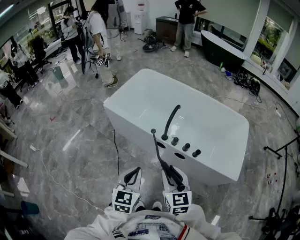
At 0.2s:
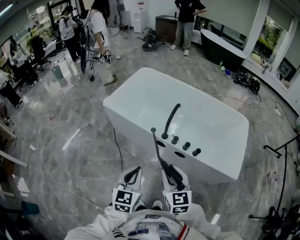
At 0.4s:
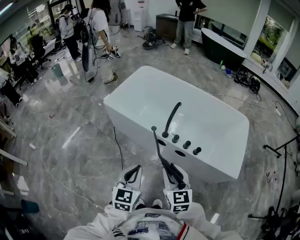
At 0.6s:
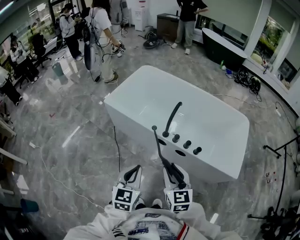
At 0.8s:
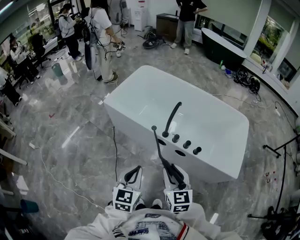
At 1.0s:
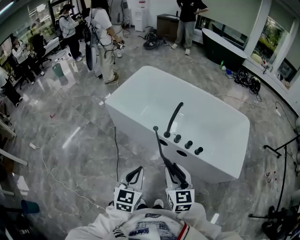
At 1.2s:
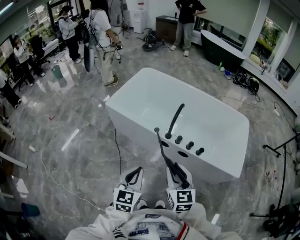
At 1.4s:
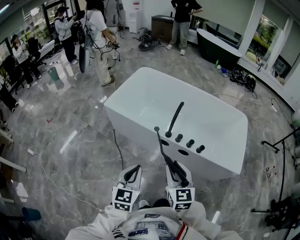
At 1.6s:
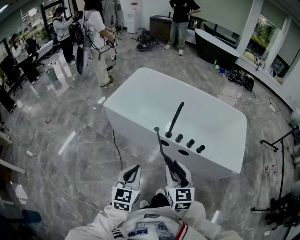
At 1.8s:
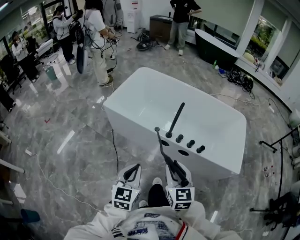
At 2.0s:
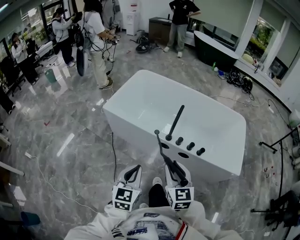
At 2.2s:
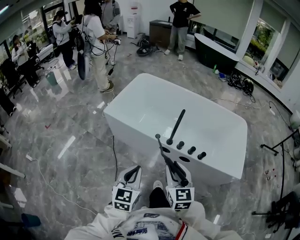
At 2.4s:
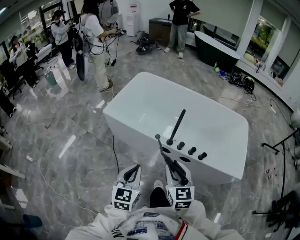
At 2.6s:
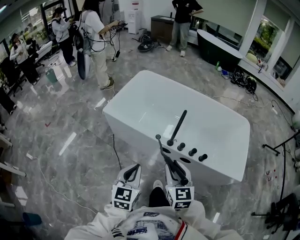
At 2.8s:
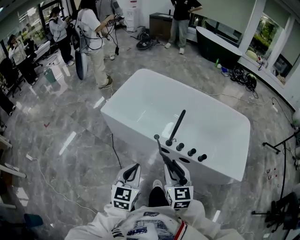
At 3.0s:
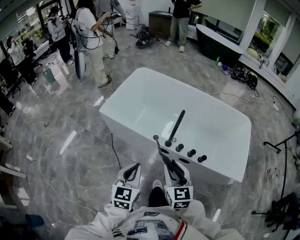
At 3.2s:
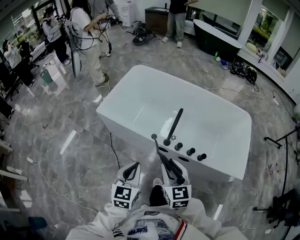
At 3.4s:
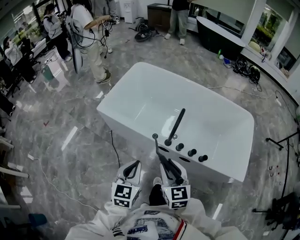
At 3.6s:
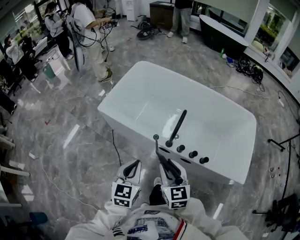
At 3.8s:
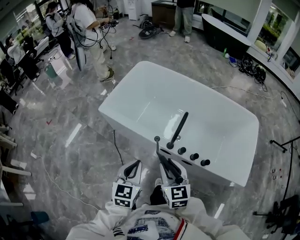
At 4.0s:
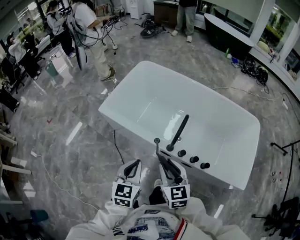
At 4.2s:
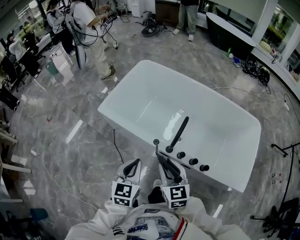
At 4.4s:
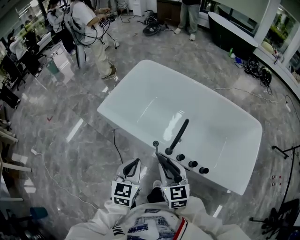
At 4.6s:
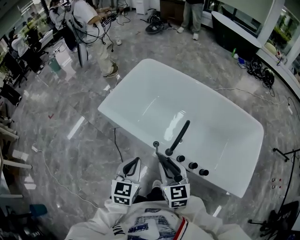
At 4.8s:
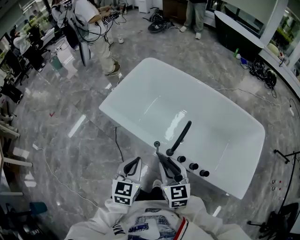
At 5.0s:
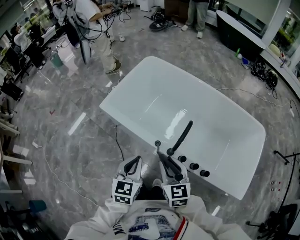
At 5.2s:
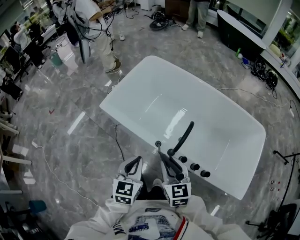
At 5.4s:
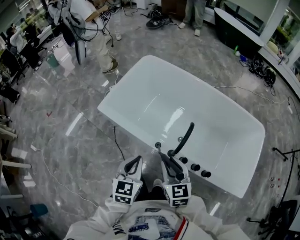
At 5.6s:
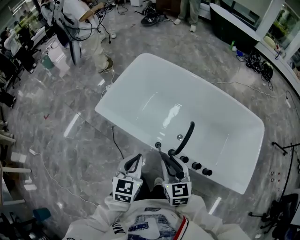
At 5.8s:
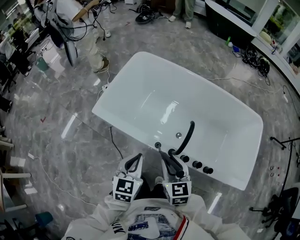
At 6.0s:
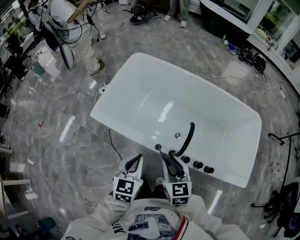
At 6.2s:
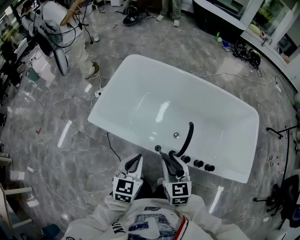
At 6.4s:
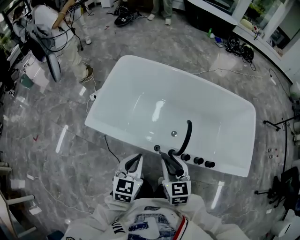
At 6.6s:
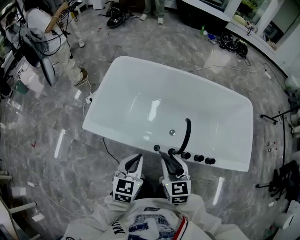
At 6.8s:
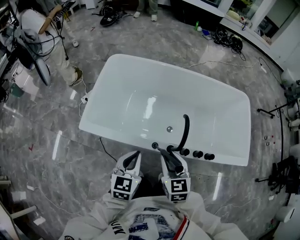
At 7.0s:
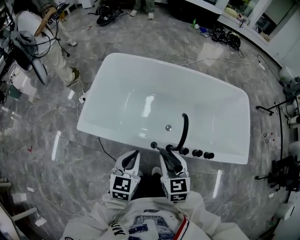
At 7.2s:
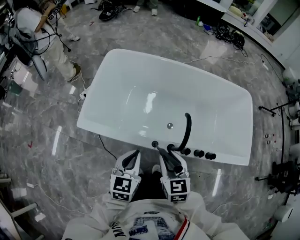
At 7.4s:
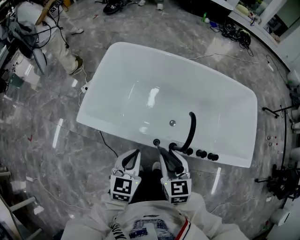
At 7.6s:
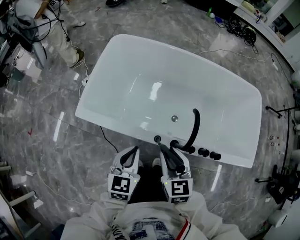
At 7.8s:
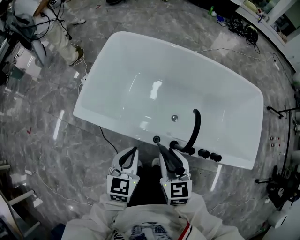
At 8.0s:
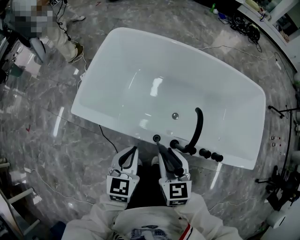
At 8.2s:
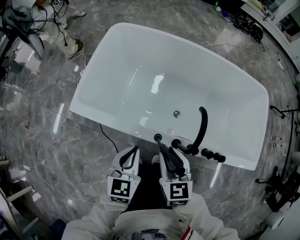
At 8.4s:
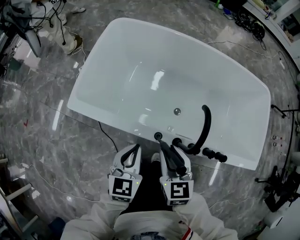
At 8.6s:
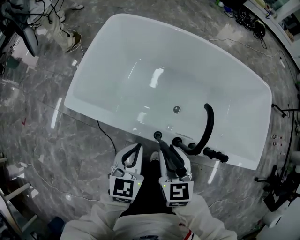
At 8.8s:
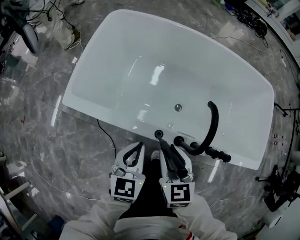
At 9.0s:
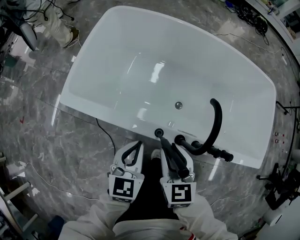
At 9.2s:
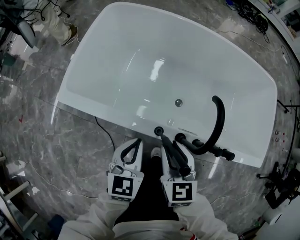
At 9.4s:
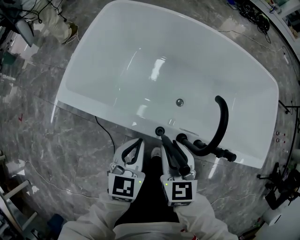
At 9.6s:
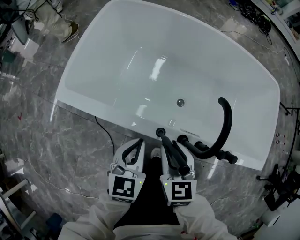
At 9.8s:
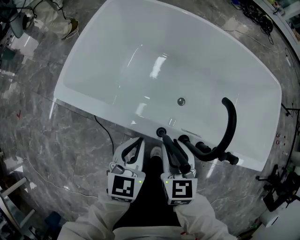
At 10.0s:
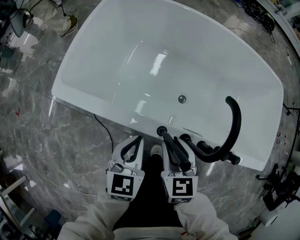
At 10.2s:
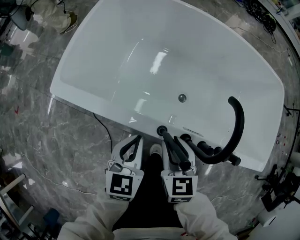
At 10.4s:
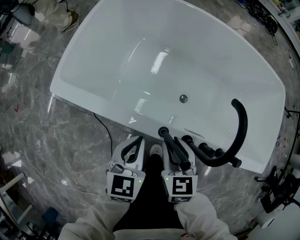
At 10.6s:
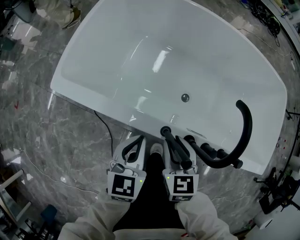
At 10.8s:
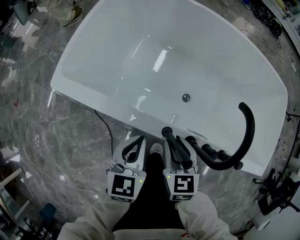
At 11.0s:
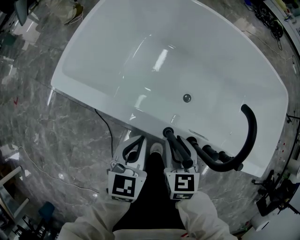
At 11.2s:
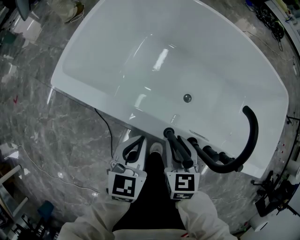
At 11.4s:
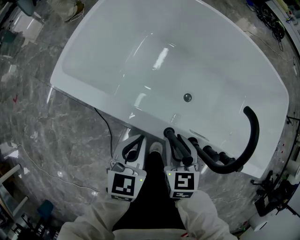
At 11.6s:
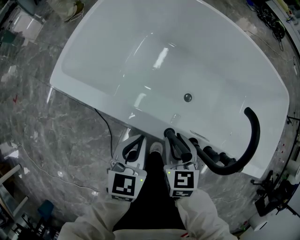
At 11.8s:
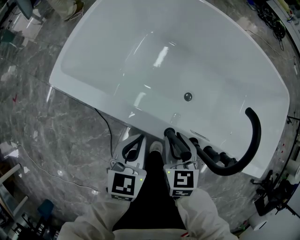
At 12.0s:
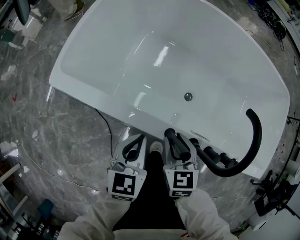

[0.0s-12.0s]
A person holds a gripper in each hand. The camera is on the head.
0.0s to 1.6s: The grippers both shift to the left by about 5 cm.
1.6s to 3.0s: The grippers both shift forward by approximately 10 cm.
3.0s to 4.4s: The grippers both shift forward by about 10 cm.
4.4s to 6.0s: Both grippers travel together forward, approximately 10 cm.
6.0s to 7.6s: The left gripper travels downward by about 5 cm, while the right gripper moves about 5 cm.
7.6s to 9.0s: Both grippers travel together downward, roughly 10 cm.
9.0s to 10.4s: Both grippers travel together downward, approximately 10 cm.
10.4s to 12.0s: The grippers make only small movements.

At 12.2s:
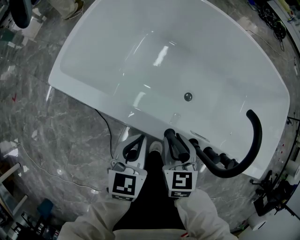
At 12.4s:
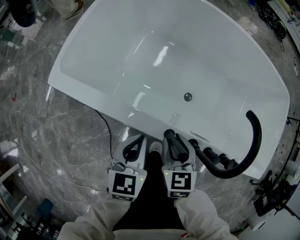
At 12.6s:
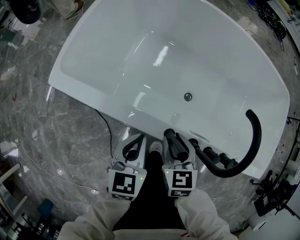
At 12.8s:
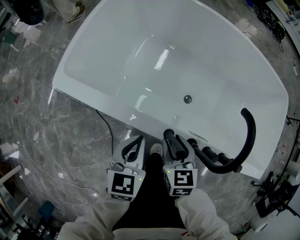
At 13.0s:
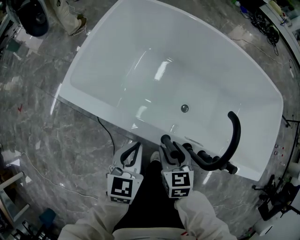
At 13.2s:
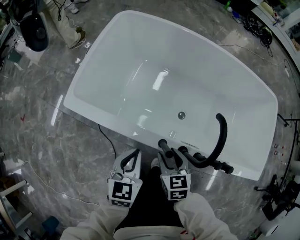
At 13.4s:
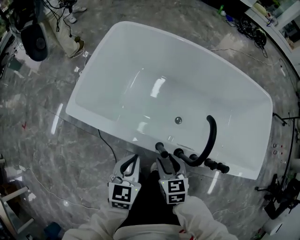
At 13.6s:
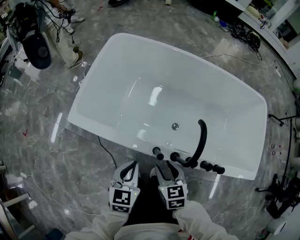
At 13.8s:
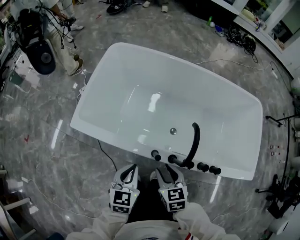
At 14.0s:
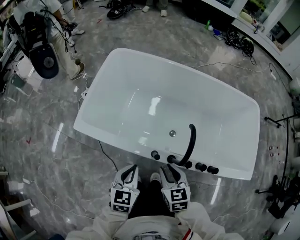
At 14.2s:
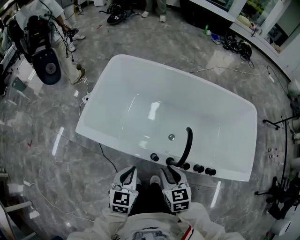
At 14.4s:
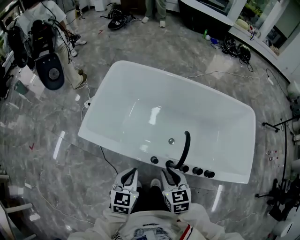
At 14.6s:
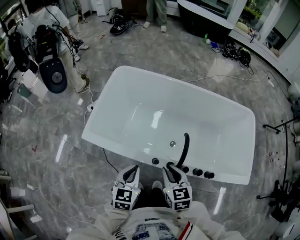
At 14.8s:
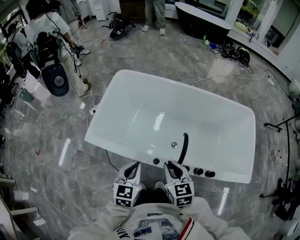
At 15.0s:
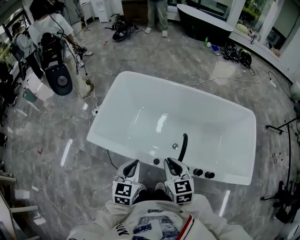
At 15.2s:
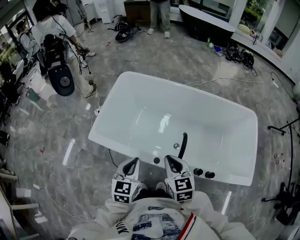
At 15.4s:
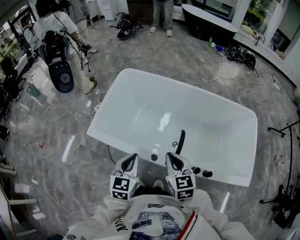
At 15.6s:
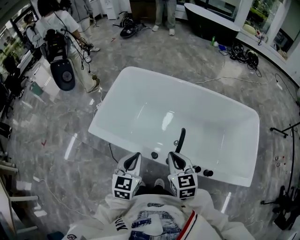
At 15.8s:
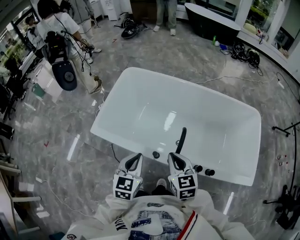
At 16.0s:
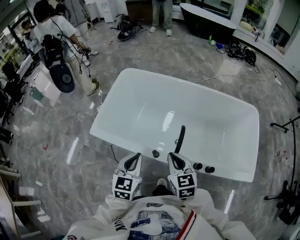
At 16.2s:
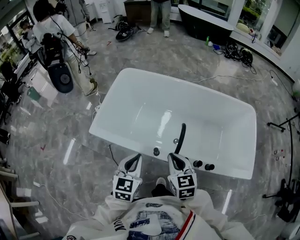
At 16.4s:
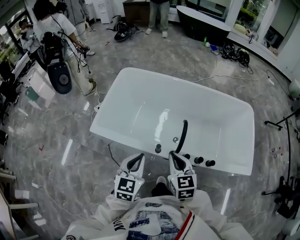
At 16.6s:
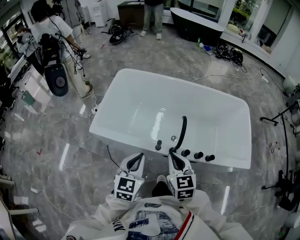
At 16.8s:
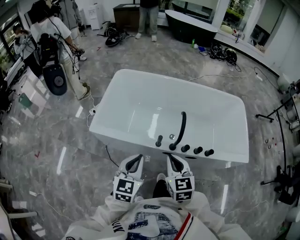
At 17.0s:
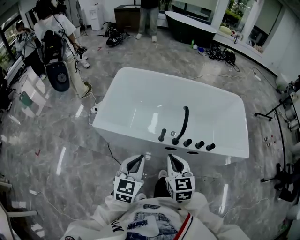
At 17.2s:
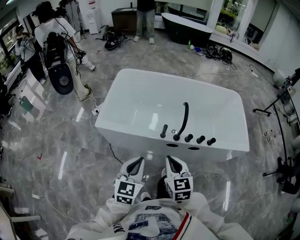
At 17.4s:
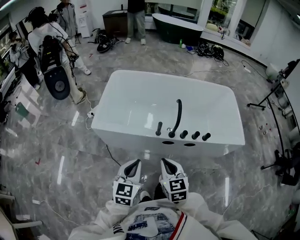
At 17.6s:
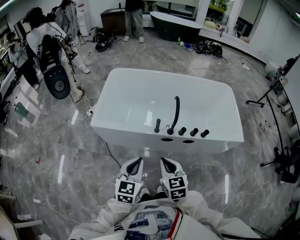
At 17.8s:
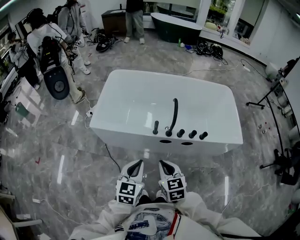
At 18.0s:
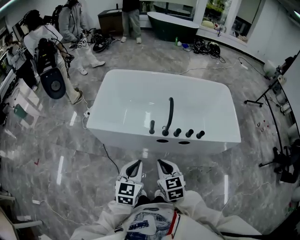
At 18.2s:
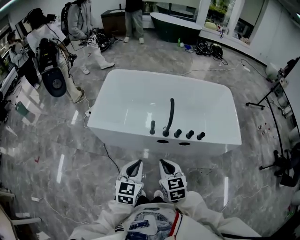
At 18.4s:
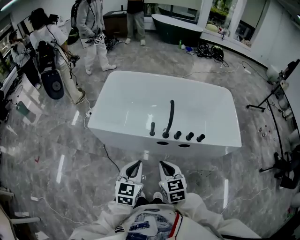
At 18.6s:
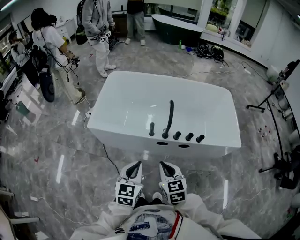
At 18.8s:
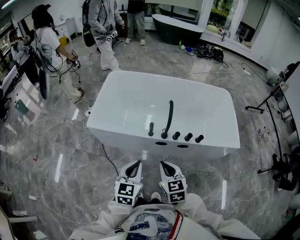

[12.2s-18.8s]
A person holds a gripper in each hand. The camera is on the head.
12.2s to 13.8s: The two grippers go roughly 15 cm upward.
13.8s to 15.4s: The grippers both shift upward by about 15 cm. The right gripper closes up.
15.4s to 17.2s: The right gripper moves backward and to the left, roughly 25 cm. The left gripper shifts approximately 20 cm backward.
17.2s to 18.8s: Both grippers move to the right, approximately 5 cm.

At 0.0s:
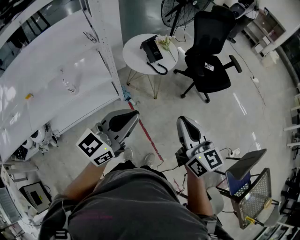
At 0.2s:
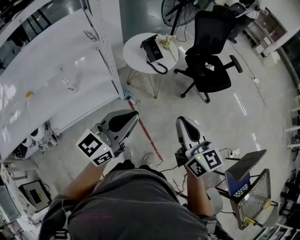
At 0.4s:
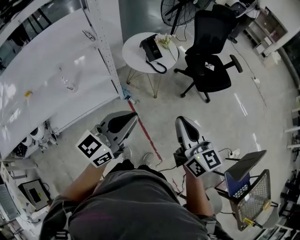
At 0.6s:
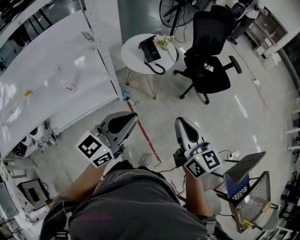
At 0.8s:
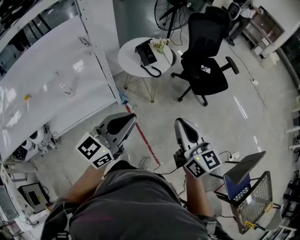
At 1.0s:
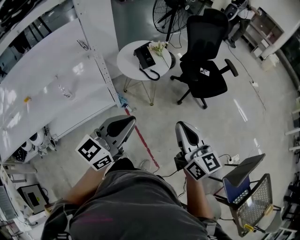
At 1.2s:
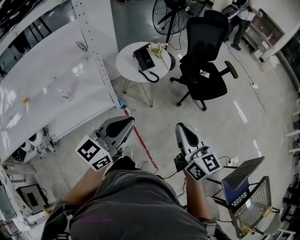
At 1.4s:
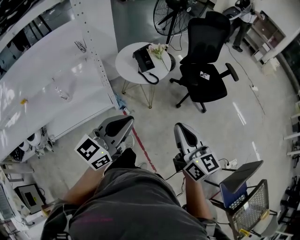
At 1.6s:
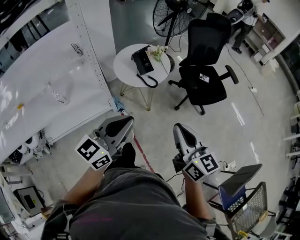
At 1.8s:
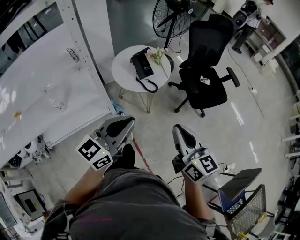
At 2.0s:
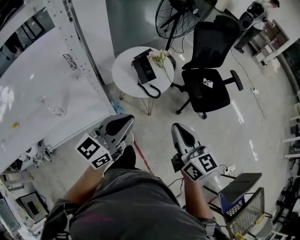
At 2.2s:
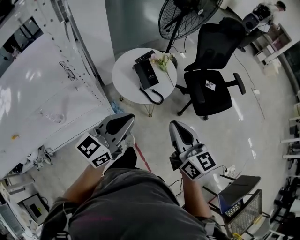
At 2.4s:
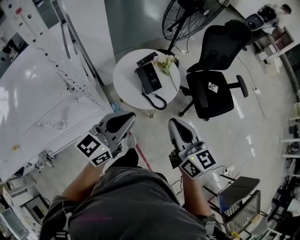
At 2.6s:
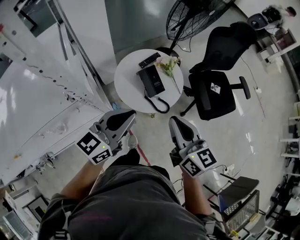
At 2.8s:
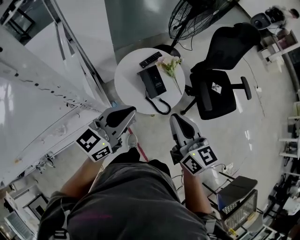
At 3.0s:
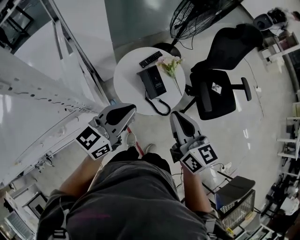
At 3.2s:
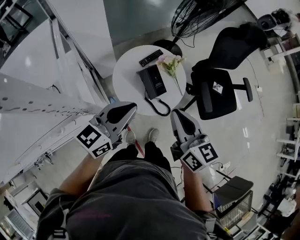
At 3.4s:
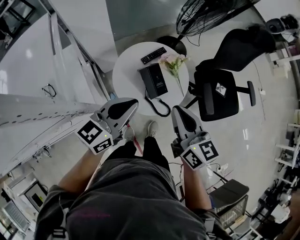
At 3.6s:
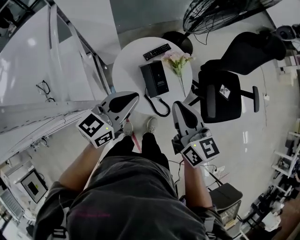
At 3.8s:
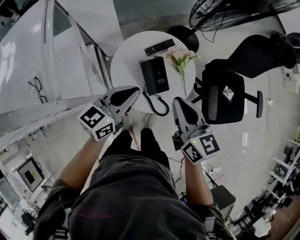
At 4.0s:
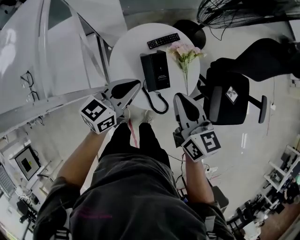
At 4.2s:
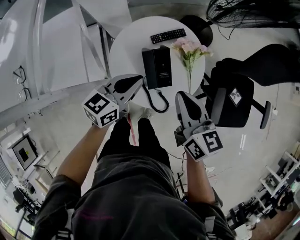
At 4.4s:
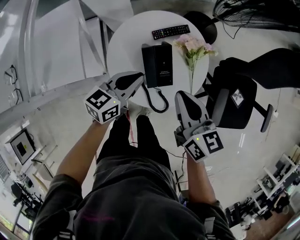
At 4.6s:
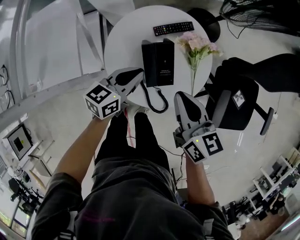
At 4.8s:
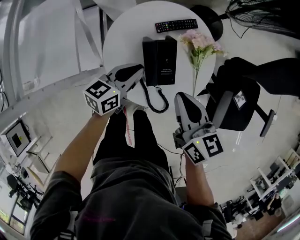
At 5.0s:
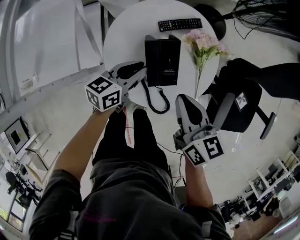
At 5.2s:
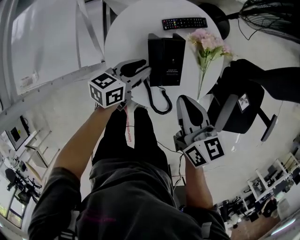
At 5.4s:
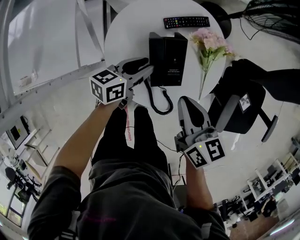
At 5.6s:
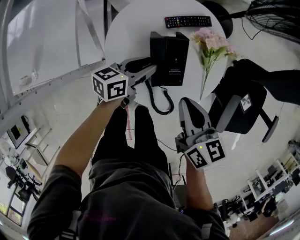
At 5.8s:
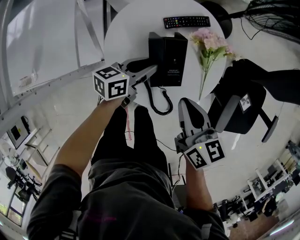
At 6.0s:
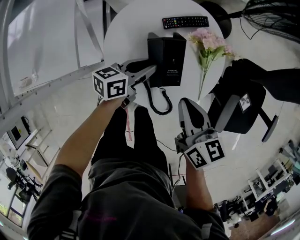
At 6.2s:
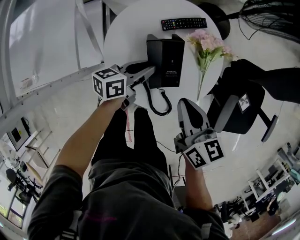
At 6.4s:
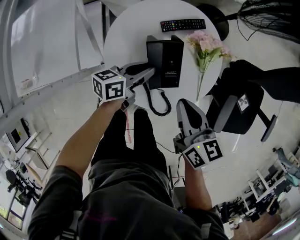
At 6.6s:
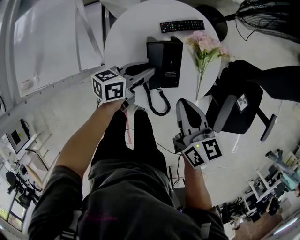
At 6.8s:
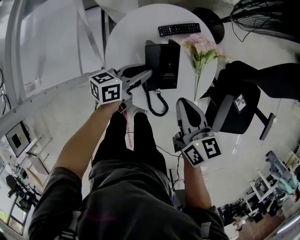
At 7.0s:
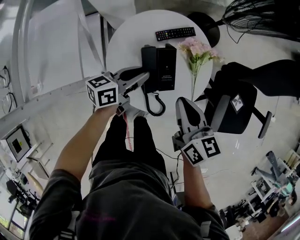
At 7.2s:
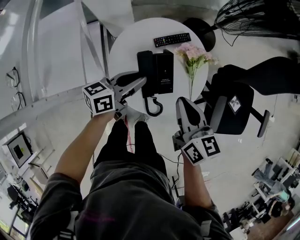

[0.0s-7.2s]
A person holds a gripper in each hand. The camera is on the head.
0.0s to 1.4s: Both grippers move to the right, roughly 5 cm.
1.4s to 2.8s: The pair of grippers is taken forward and to the left, approximately 40 cm.
2.8s to 4.4s: The left gripper is displaced downward and forward by approximately 35 cm, and changes its angle by about 30 degrees. The right gripper heads forward and downward, covering about 25 cm, and turns by some 20 degrees.
4.4s to 5.8s: The grippers both shift downward by roughly 10 cm. The left gripper swivels roughly 20 degrees, and opens up.
5.8s to 7.2s: The right gripper moves upward, about 10 cm; the left gripper heads upward, covering roughly 15 cm.
